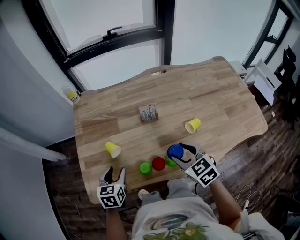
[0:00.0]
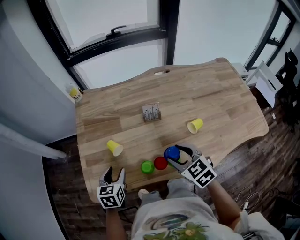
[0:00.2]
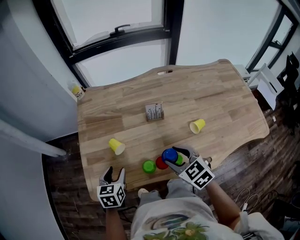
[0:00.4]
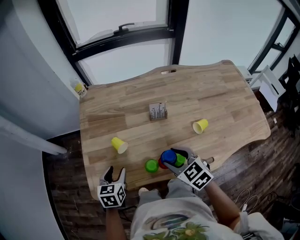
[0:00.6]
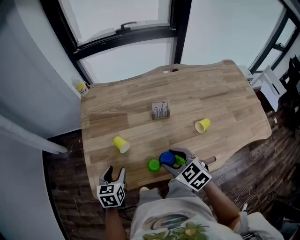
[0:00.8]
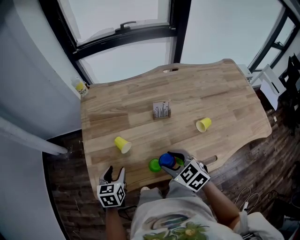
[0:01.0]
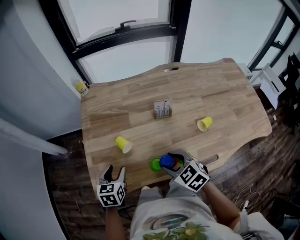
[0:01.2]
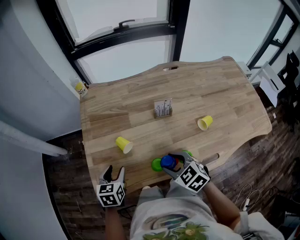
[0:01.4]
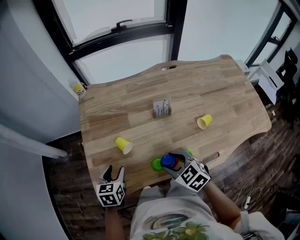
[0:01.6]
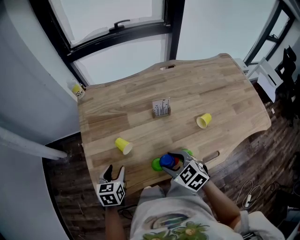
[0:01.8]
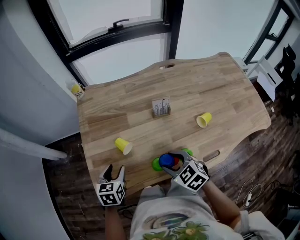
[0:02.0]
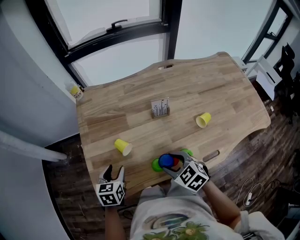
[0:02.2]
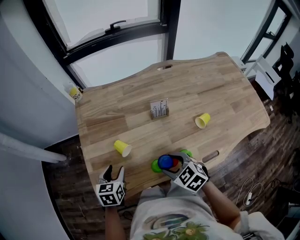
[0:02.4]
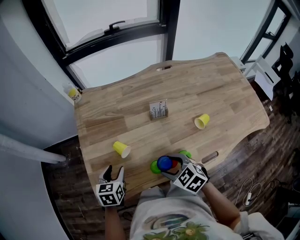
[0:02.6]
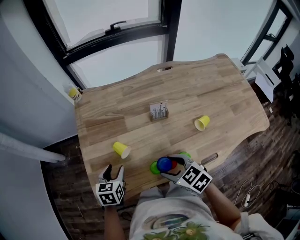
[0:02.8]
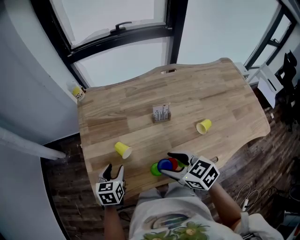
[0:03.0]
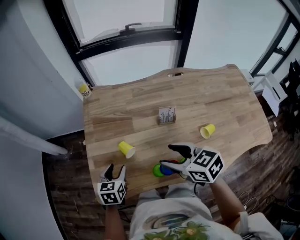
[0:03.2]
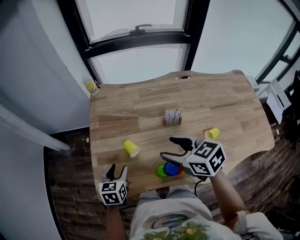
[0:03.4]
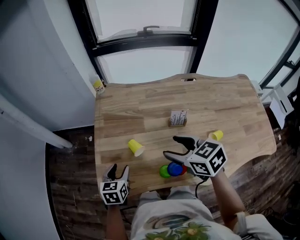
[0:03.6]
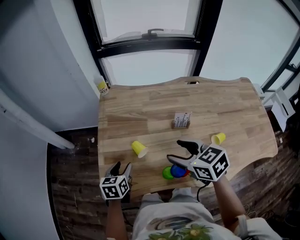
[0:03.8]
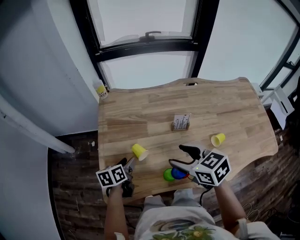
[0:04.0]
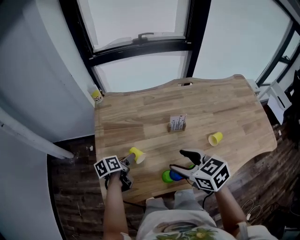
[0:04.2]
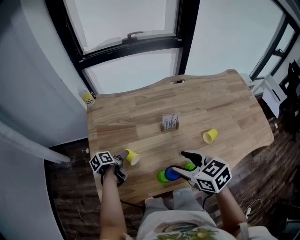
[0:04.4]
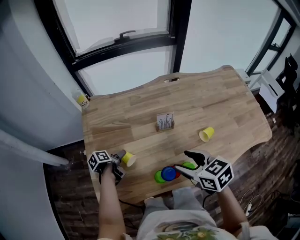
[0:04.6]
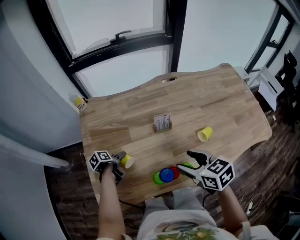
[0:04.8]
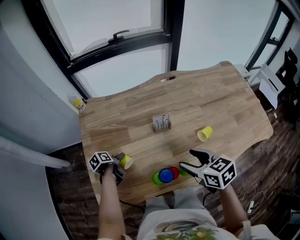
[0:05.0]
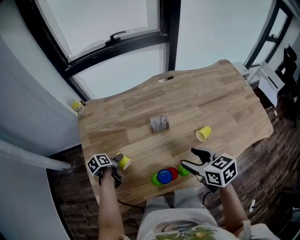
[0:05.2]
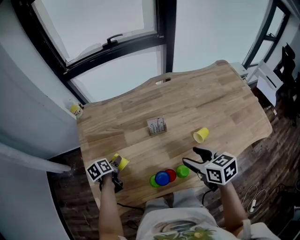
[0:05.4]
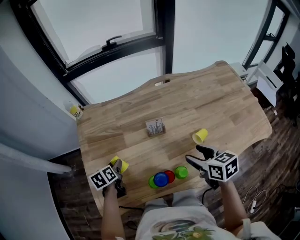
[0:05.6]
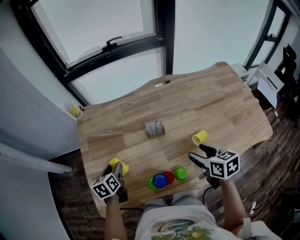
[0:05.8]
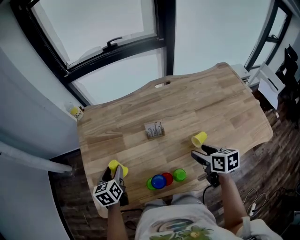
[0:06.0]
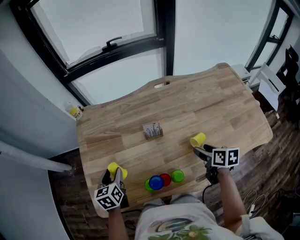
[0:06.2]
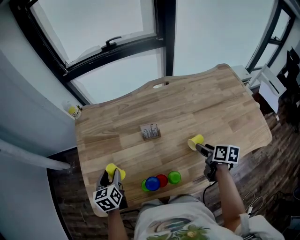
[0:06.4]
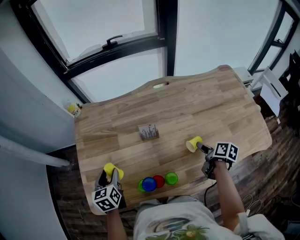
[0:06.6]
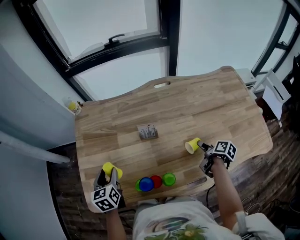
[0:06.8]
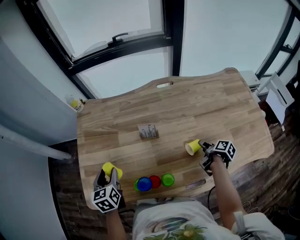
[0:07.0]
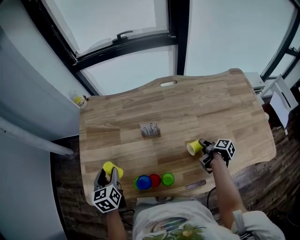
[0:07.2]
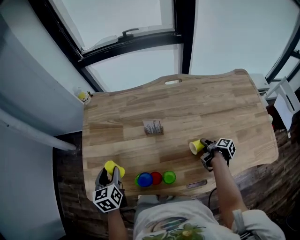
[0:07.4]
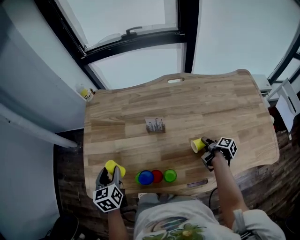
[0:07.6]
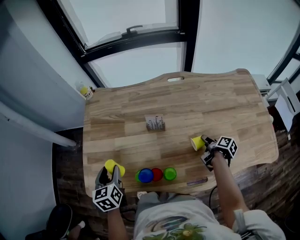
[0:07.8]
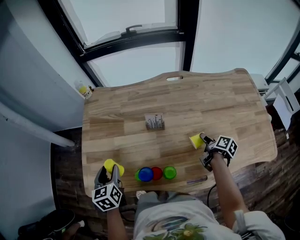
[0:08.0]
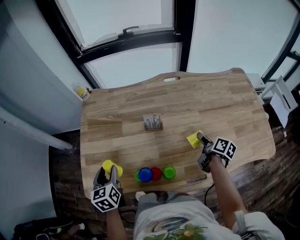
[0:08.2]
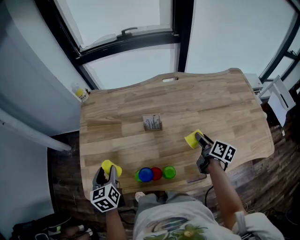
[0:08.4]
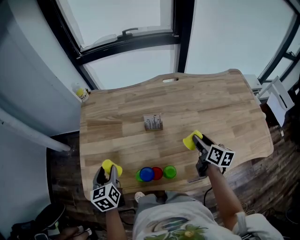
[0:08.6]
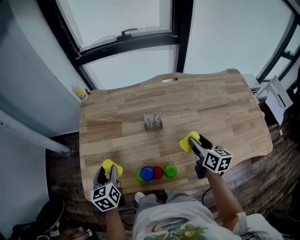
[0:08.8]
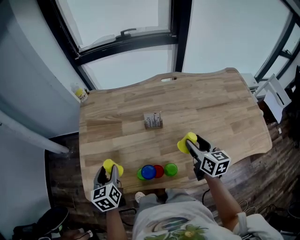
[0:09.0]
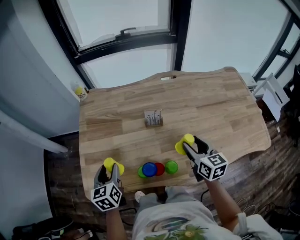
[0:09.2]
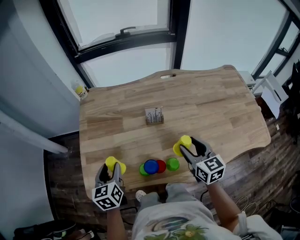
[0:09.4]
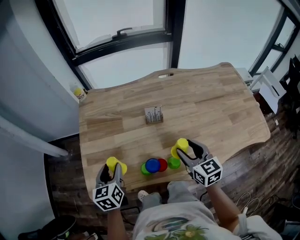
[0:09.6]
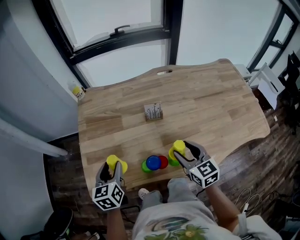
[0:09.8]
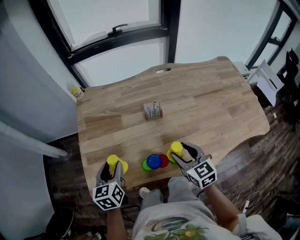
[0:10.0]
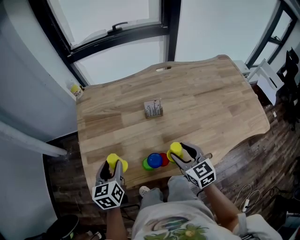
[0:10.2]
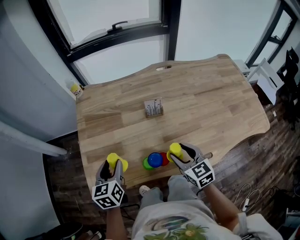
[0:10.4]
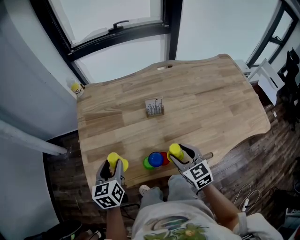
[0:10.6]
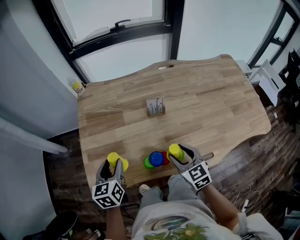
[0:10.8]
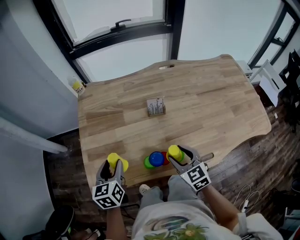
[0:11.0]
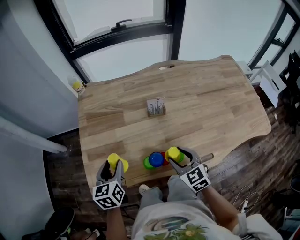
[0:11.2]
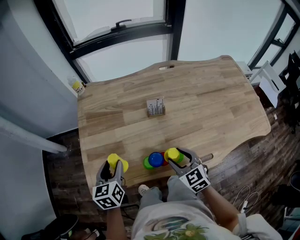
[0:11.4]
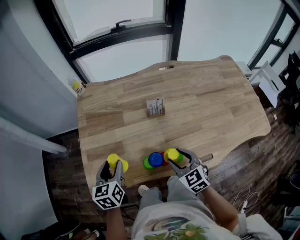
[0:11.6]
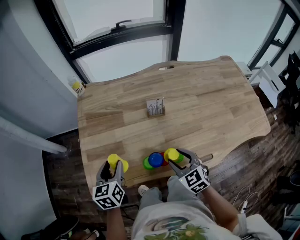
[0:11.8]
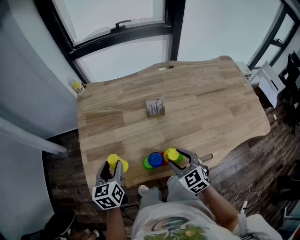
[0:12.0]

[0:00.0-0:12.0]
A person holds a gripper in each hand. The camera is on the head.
0.0 to 1.6 s: The right gripper is displaced to the left by about 15 cm, while the left gripper goes about 5 cm to the left.
1.6 to 3.0 s: The right gripper heads upward, covering some 5 cm.
3.0 to 4.4 s: The left gripper is displaced forward and downward by approximately 10 cm, and rotates around the line of its fingers by about 50 degrees, counterclockwise from behind.
4.4 to 6.0 s: The right gripper shifts approximately 20 cm to the right, and rotates some 30 degrees; the left gripper goes some 10 cm upward, and twists about 40 degrees clockwise, seen from behind.
6.0 to 7.6 s: The right gripper goes some 20 cm downward and to the right, and rotates around the line of its fingers by roughly 60 degrees, clockwise from behind; the left gripper goes approximately 10 cm backward.
7.6 to 9.0 s: The right gripper moves upward and to the left, some 20 cm, and rotates around the line of its fingers by some 60 degrees, counterclockwise from behind.
9.0 to 10.4 s: The right gripper is displaced to the left and backward by approximately 15 cm, and turns by roughly 20 degrees.
10.4 to 12.0 s: There are only small adjustments of the grippers.

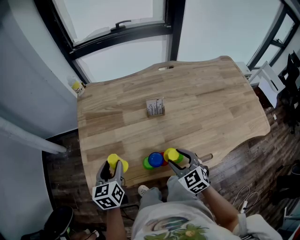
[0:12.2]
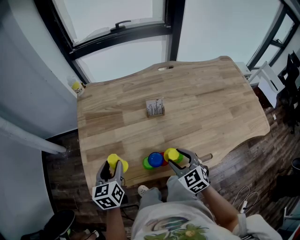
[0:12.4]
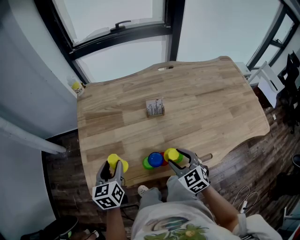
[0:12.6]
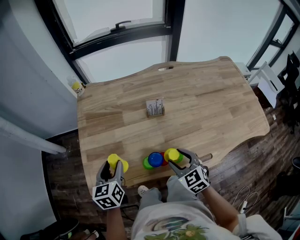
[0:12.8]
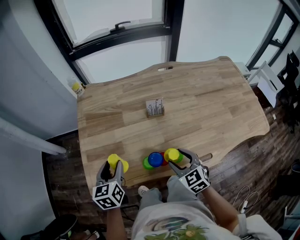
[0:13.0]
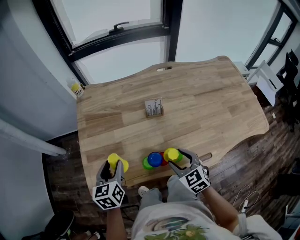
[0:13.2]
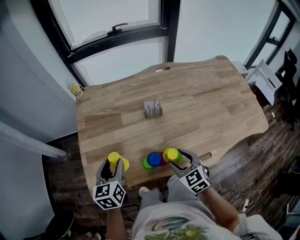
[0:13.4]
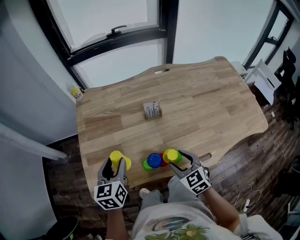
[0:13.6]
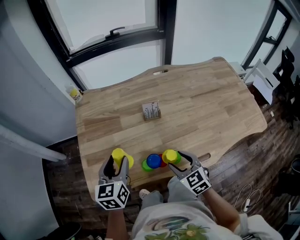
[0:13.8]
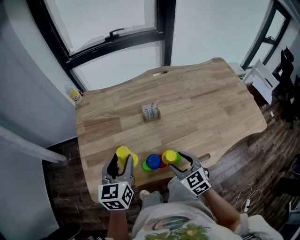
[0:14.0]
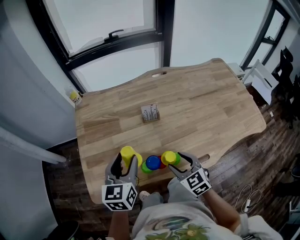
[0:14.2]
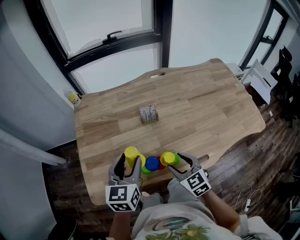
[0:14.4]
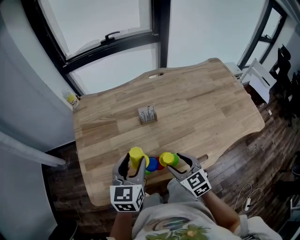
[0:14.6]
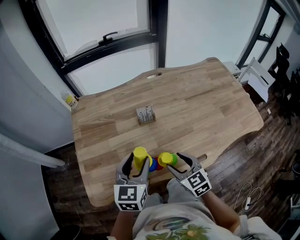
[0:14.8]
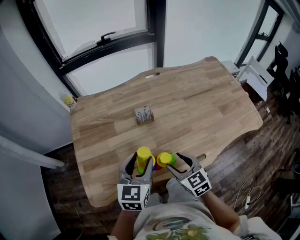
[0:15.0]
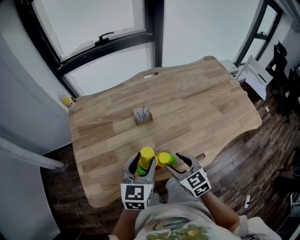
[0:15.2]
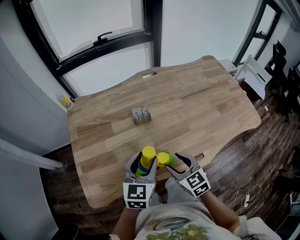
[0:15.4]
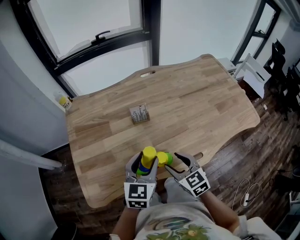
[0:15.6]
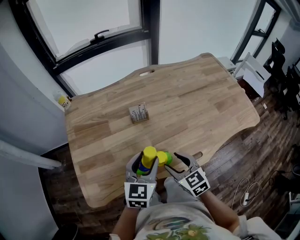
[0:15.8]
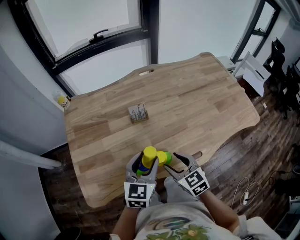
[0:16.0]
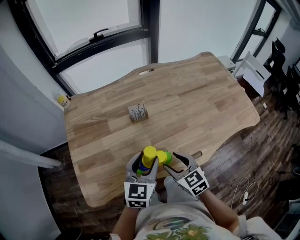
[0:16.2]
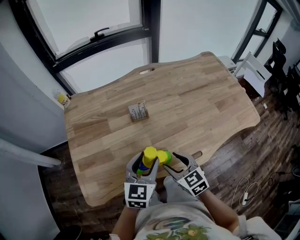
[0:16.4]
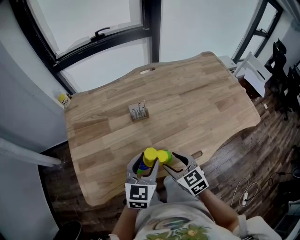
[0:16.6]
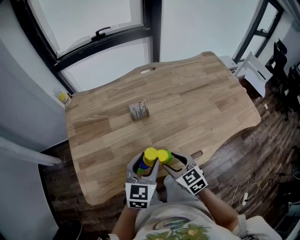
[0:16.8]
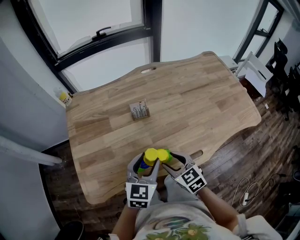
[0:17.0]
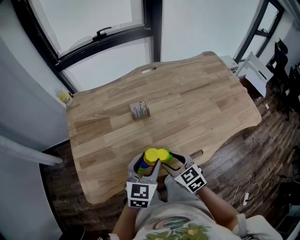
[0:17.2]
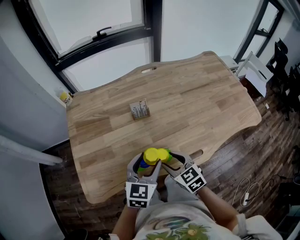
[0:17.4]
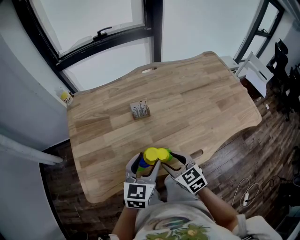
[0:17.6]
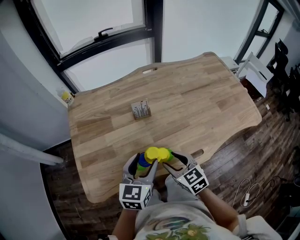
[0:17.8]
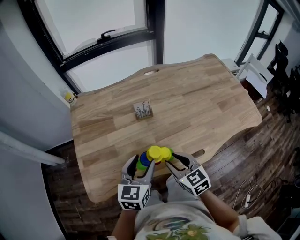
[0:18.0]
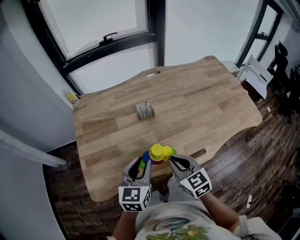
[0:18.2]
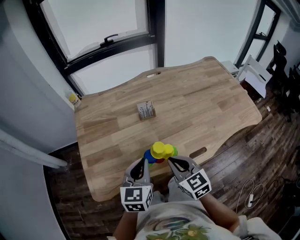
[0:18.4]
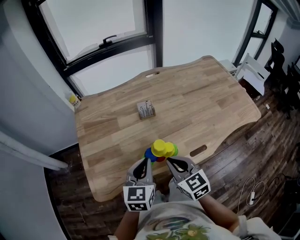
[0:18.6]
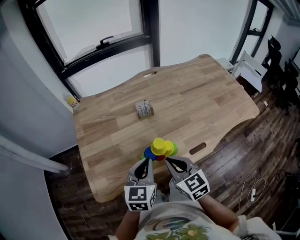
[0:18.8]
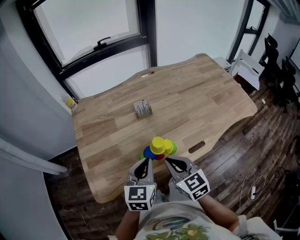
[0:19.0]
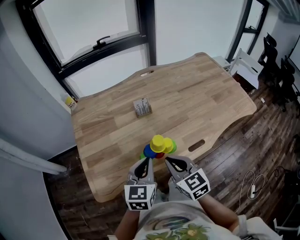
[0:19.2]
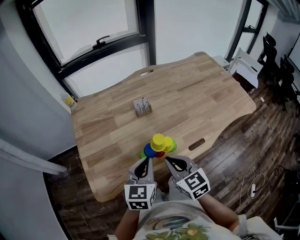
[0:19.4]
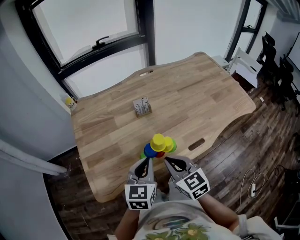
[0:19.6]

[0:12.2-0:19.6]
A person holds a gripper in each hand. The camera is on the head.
12.2 to 13.6 s: There are only small adjustments of the grippers.
13.6 to 15.2 s: The left gripper is displaced to the right by approximately 15 cm, and swivels approximately 20 degrees.
15.2 to 16.6 s: The grippers make only small movements.
16.6 to 18.2 s: The left gripper goes about 5 cm to the left. The right gripper ends up approximately 5 cm from where it was, and closes.
18.2 to 19.6 s: The left gripper closes its fingers; the right gripper changes place by some 5 cm.

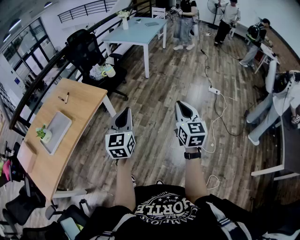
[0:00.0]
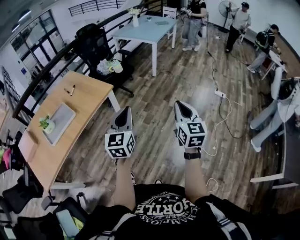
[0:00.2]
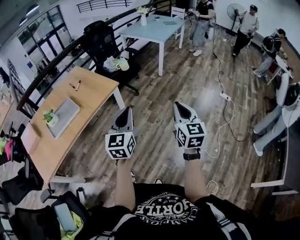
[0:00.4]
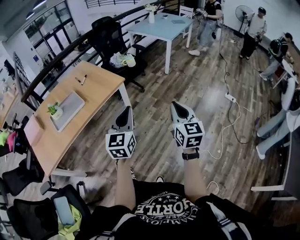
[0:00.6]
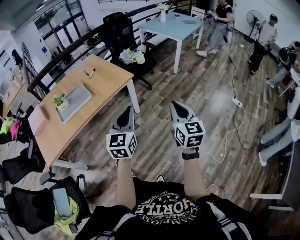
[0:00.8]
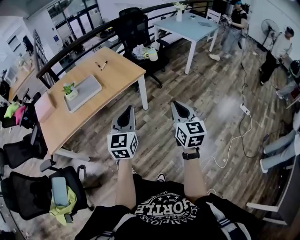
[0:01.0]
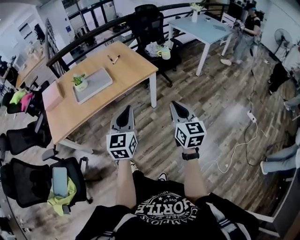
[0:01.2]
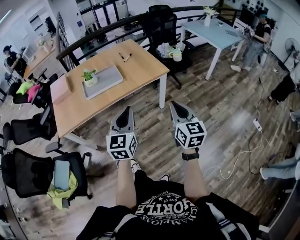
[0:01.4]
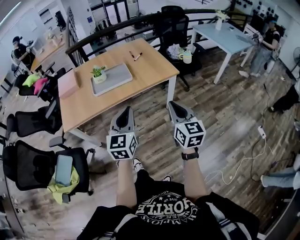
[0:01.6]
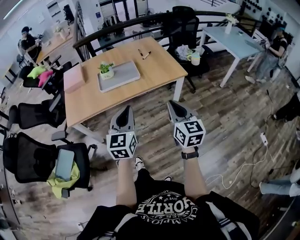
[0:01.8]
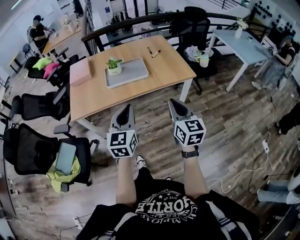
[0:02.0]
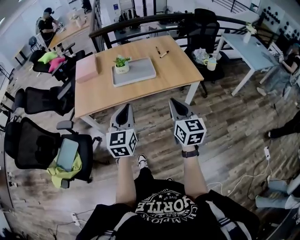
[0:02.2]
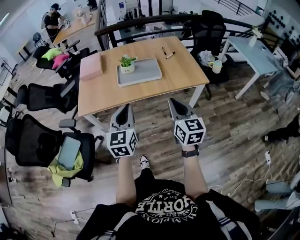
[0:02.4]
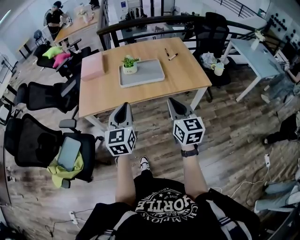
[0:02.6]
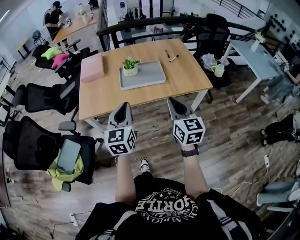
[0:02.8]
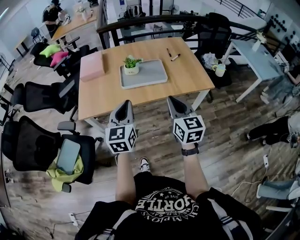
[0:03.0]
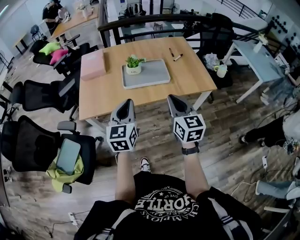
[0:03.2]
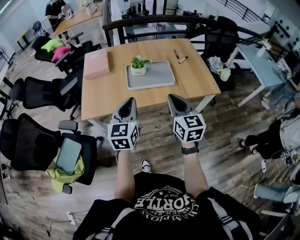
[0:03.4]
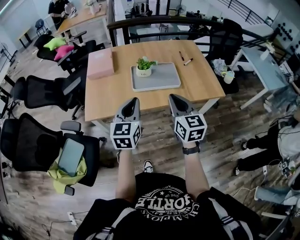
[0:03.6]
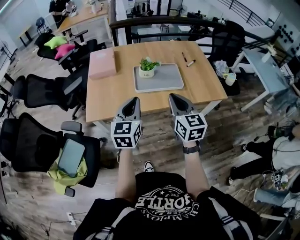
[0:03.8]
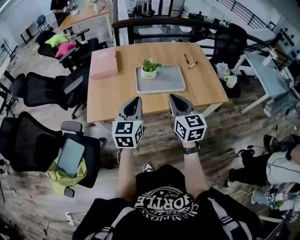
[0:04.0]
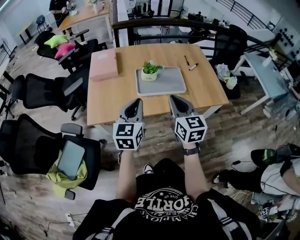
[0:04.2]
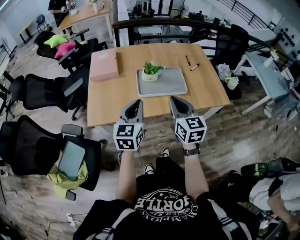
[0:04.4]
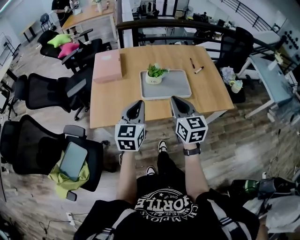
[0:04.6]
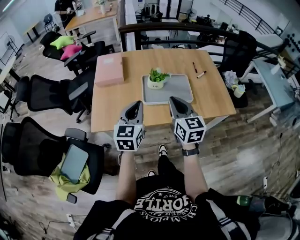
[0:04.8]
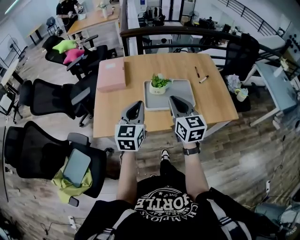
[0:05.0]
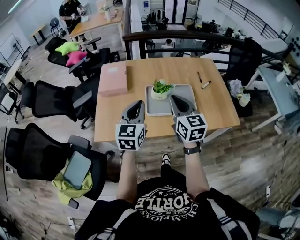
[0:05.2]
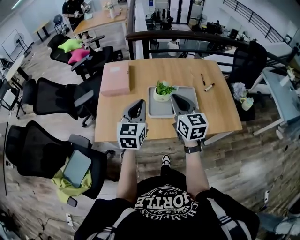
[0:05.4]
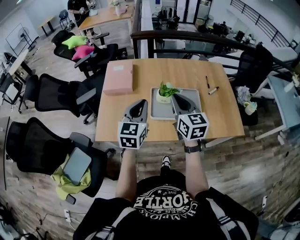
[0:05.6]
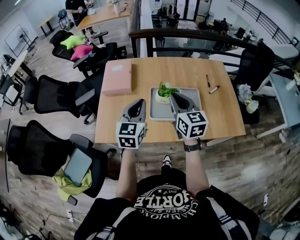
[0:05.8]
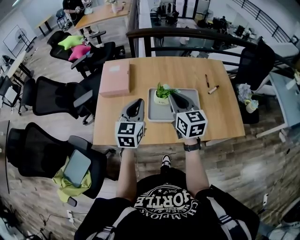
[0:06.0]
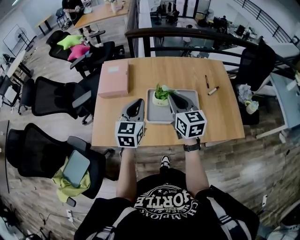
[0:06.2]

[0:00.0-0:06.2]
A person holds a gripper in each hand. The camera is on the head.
0.0 to 1.6 s: The left gripper moves some 30 cm, and changes its angle by about 40 degrees; the right gripper ends up about 35 cm from where it was, and swivels about 40 degrees.
1.6 to 3.2 s: Both grippers move to the left and forward, approximately 30 cm.
3.2 to 4.6 s: Both grippers move forward and to the left, roughly 15 cm.
4.6 to 6.2 s: The grippers both shift forward by approximately 20 cm.
